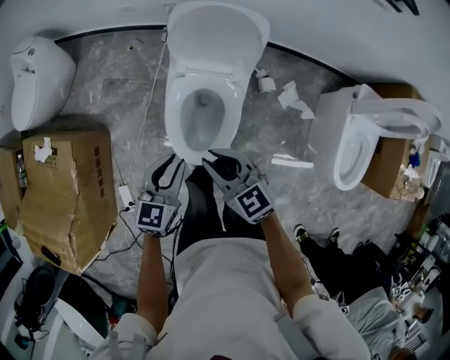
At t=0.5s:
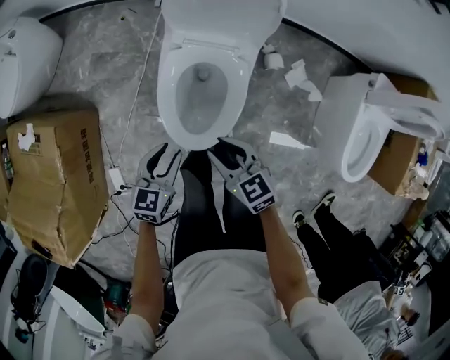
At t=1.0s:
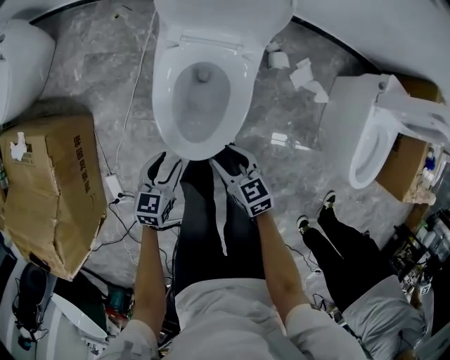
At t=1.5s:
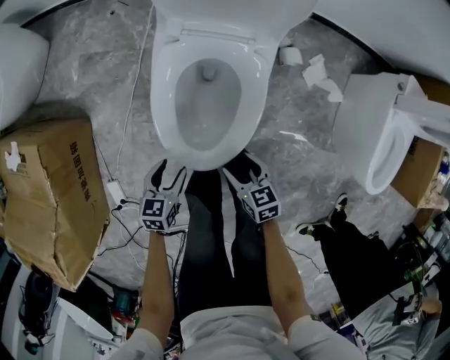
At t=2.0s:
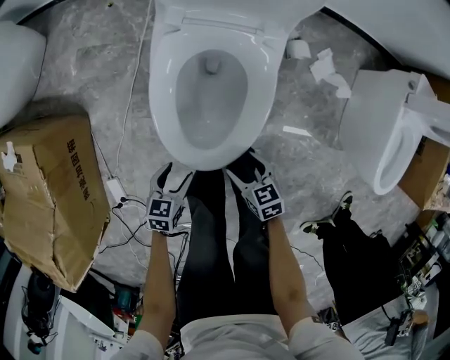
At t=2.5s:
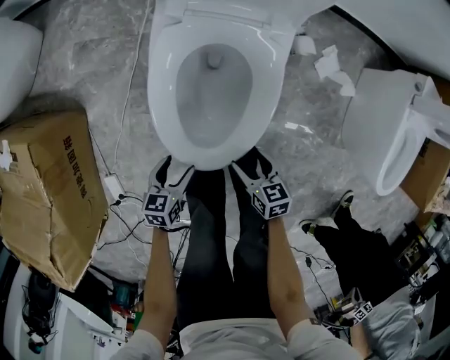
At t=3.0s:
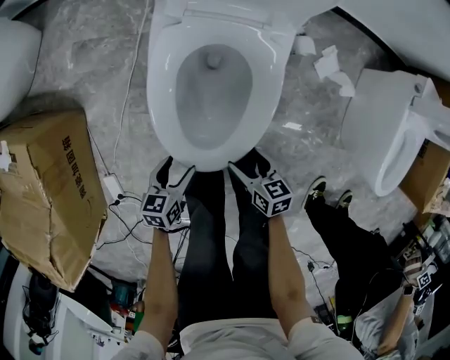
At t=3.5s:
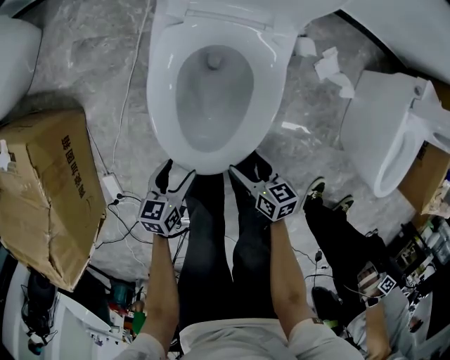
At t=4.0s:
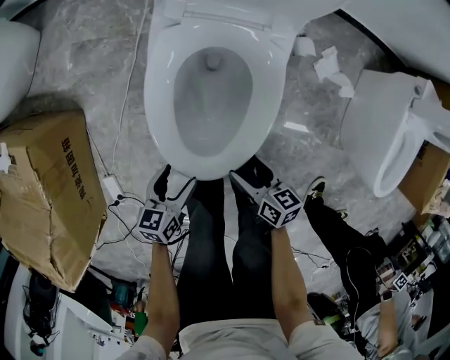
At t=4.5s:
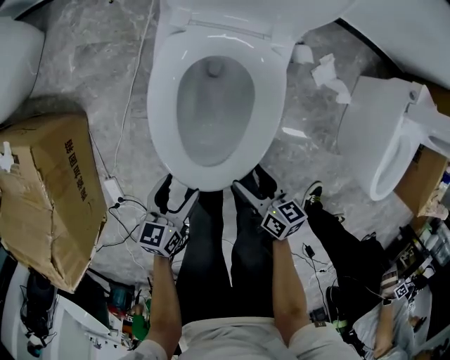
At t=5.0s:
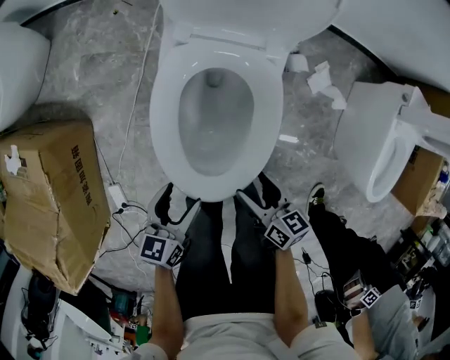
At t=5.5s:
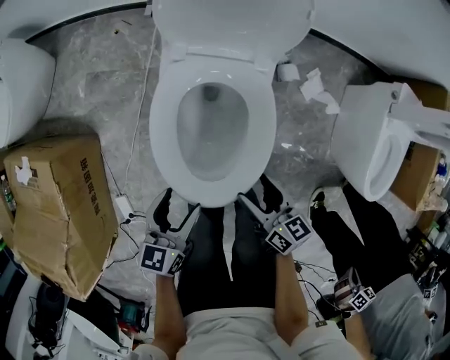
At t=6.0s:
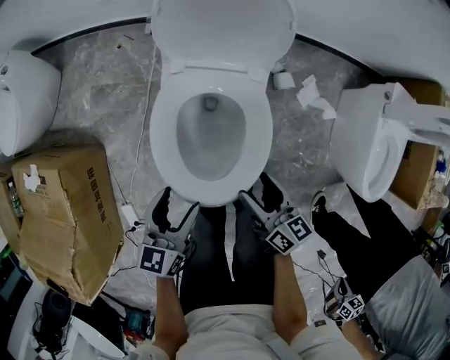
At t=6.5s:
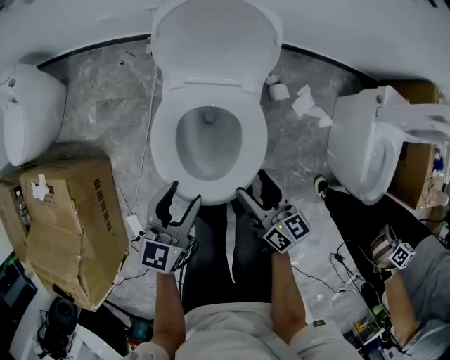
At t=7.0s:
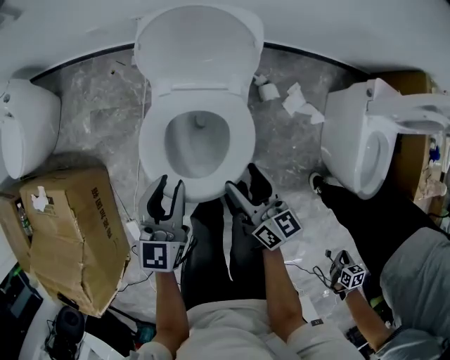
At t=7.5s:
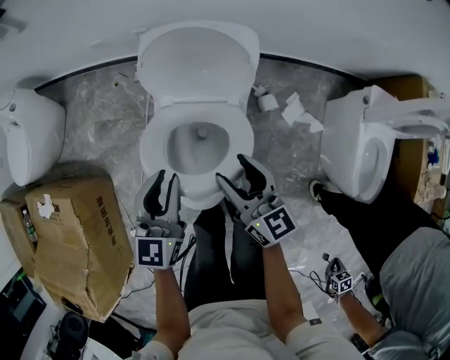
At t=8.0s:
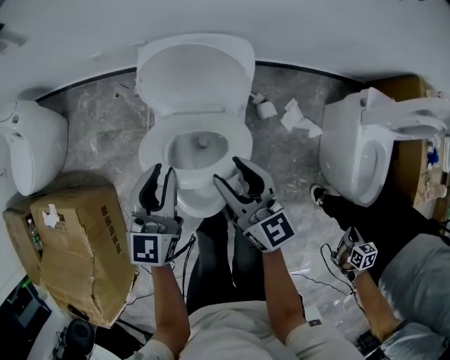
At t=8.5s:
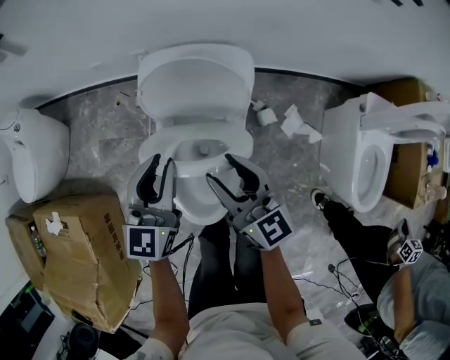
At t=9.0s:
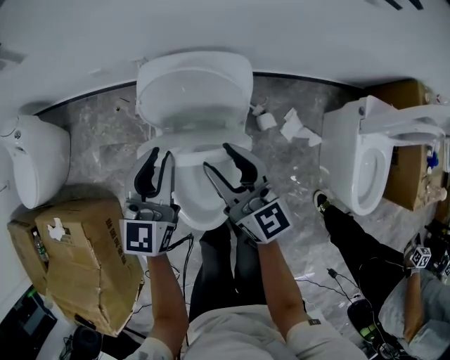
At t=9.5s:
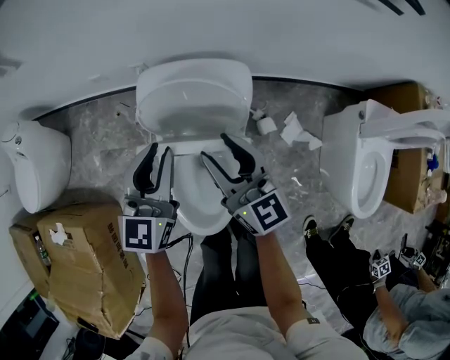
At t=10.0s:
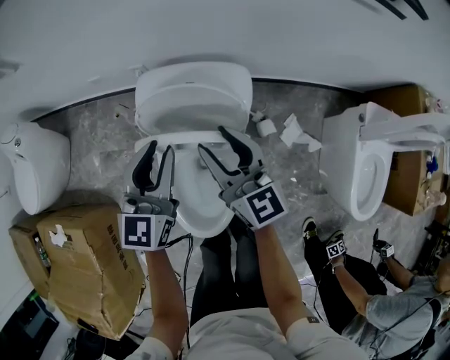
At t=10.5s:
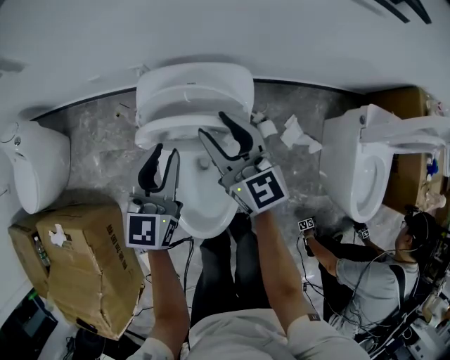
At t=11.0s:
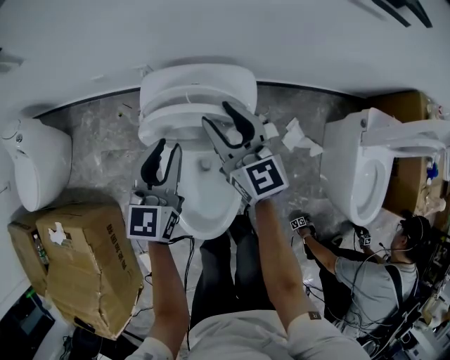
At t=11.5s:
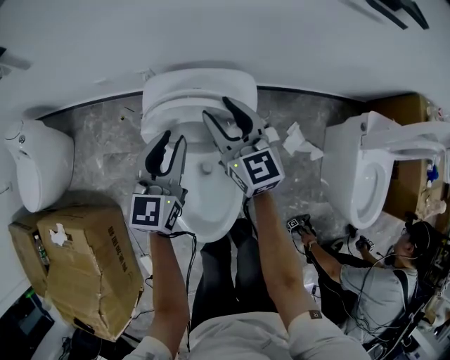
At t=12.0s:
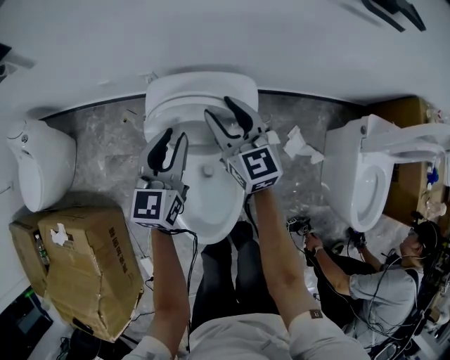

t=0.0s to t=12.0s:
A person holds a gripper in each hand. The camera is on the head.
t=0.0s to t=2.0s: The grippers both shift downward by some 40 cm. The left gripper swivels some 30 degrees, and opens its fingers, while the right gripper changes its angle by approximately 30 degrees, and opens.
t=2.0s to t=4.0s: The right gripper changes its angle by about 30 degrees.
t=4.0s to t=6.0s: Both grippers move upward, approximately 25 cm. The right gripper rotates roughly 20 degrees. The left gripper turns by some 20 degrees.
t=6.0s to t=8.0s: The left gripper heads forward and upward, covering some 25 cm, swivels approximately 20 degrees, and closes its fingers; the right gripper travels upward and forward by approximately 20 cm, swivels approximately 30 degrees, and closes up.
t=8.0s to t=10.0s: The grippers both shift forward by about 15 cm.
t=10.0s to t=12.0s: The right gripper moves forward, about 10 cm.

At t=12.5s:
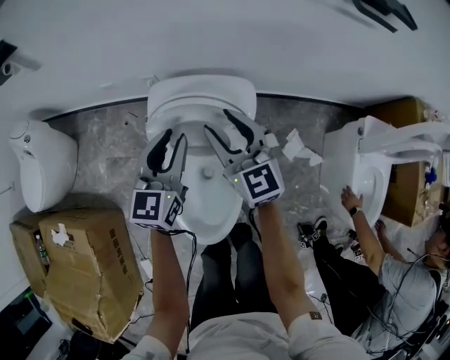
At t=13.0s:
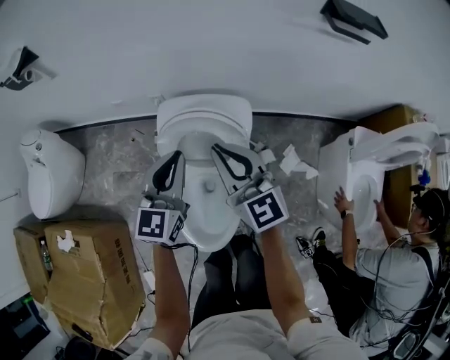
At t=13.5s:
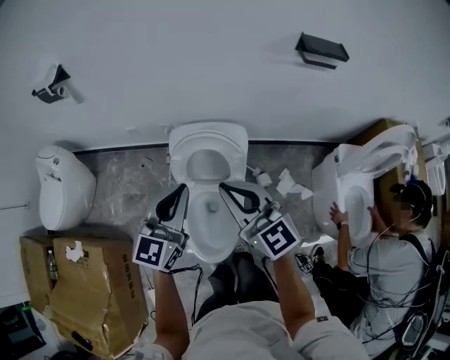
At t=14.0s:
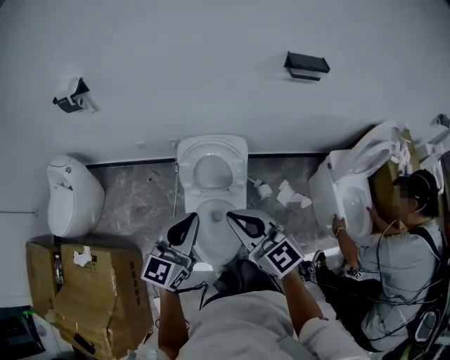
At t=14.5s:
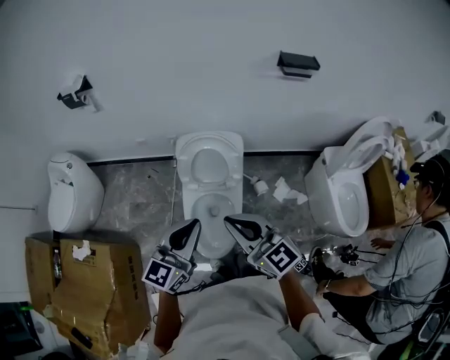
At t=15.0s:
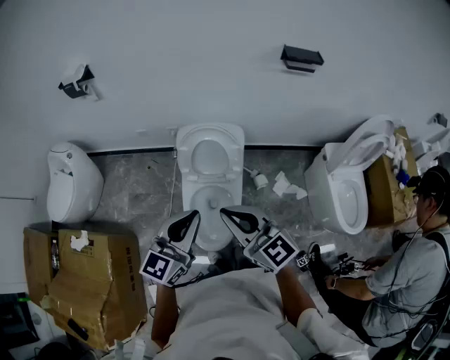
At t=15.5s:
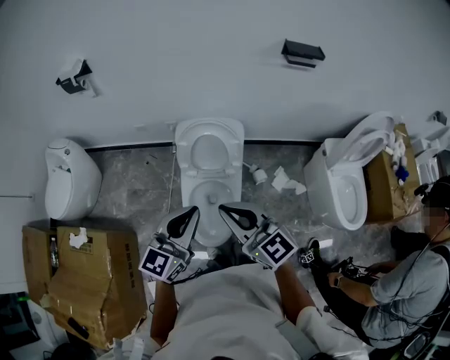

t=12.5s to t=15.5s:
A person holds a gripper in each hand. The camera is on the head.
t=12.5s to t=14.0s: Both grippers move backward and upward, roughly 35 cm. The right gripper closes.
t=14.0s to t=15.5s: The two grippers go about 5 cm backward.

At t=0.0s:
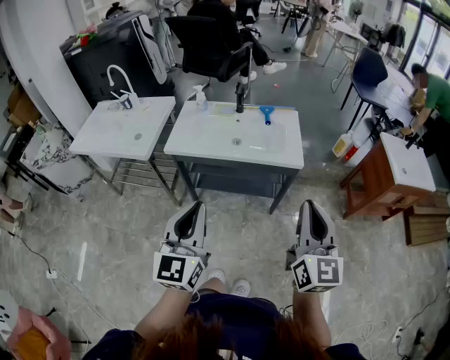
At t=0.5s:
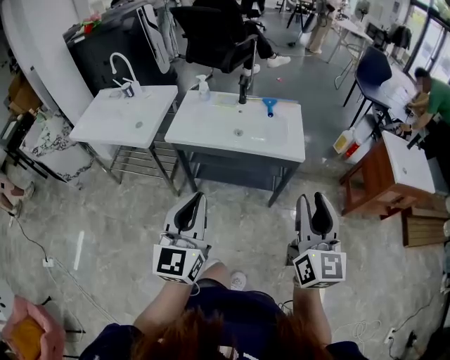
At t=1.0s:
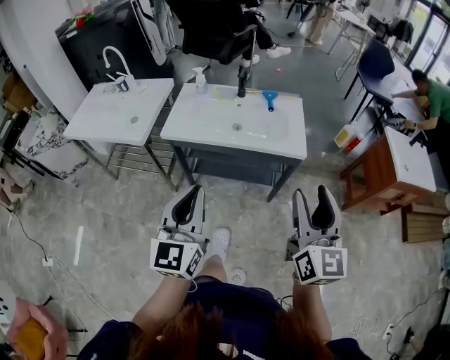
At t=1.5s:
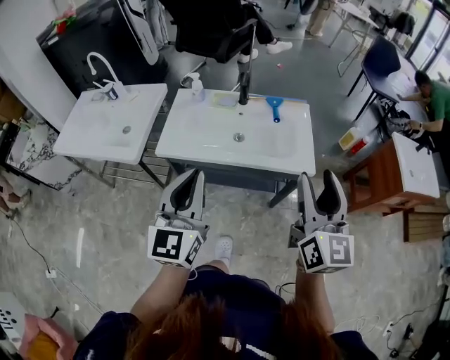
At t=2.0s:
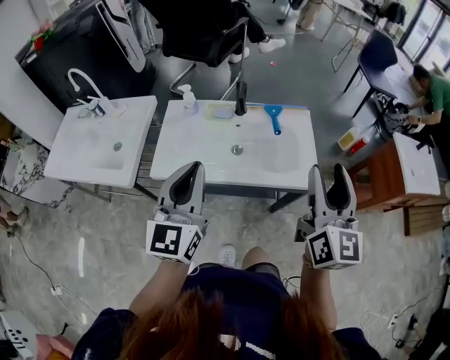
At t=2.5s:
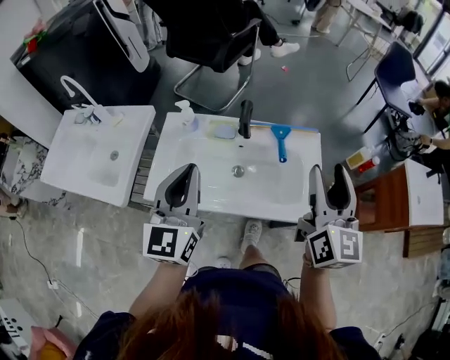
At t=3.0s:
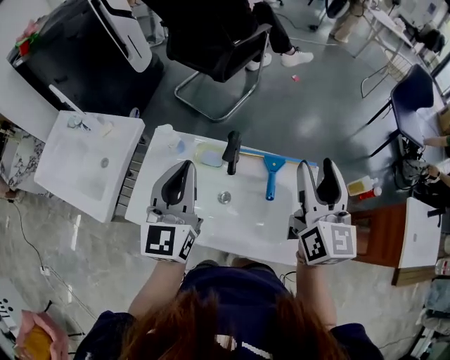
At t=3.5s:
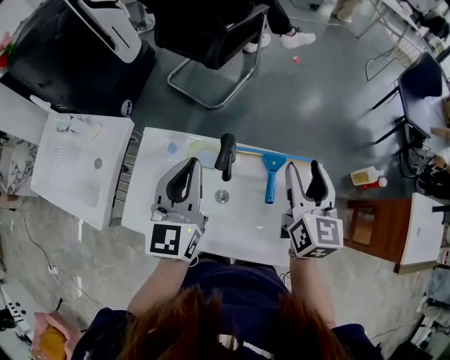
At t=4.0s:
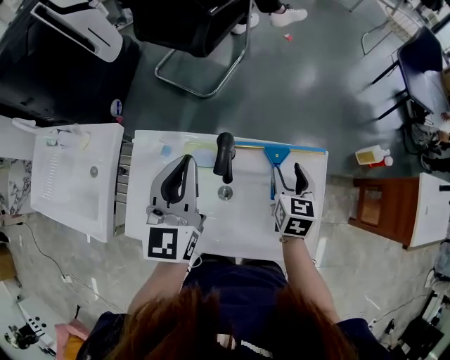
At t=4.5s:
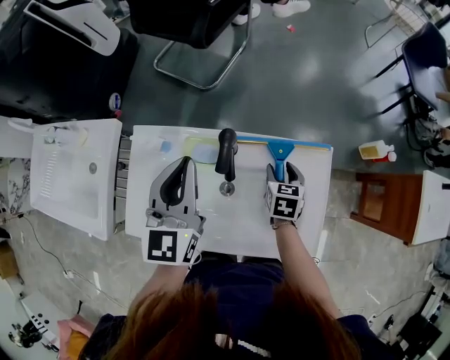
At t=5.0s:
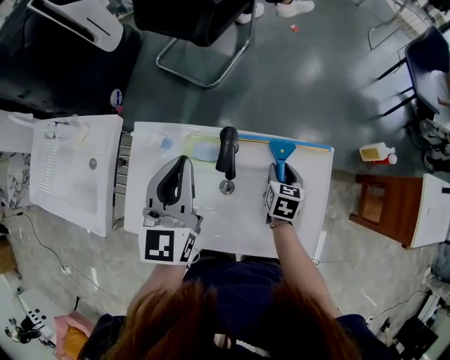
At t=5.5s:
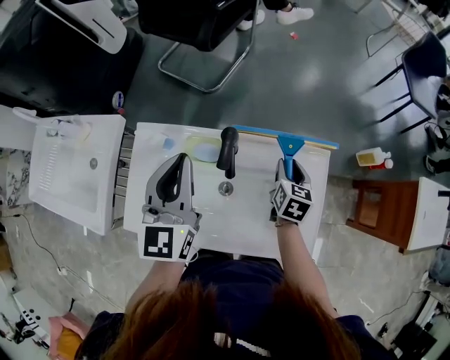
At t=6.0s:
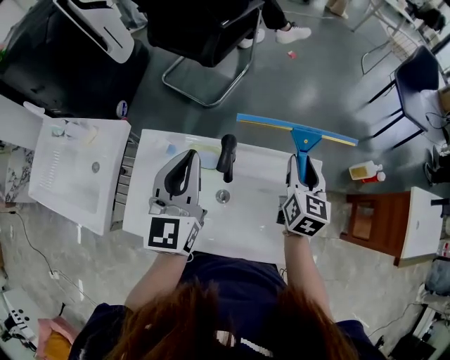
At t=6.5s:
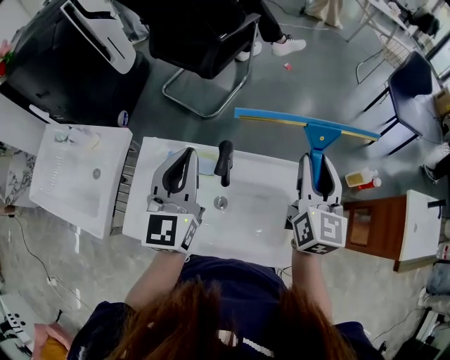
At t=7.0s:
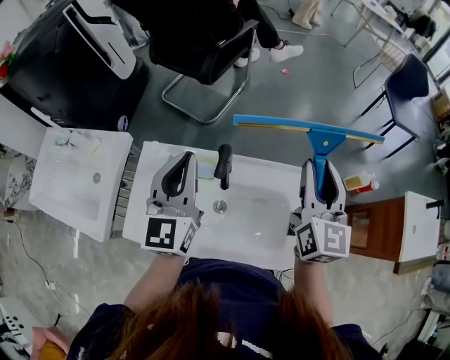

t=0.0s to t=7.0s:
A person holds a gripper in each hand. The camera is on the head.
t=0.0s to t=2.0s: The two grippers go about 35 cm forward. The right gripper opens its fingers.
t=2.0s to t=3.5s: The pair of grippers is taken forward, about 40 cm. The right gripper changes its angle by some 20 degrees.
t=3.5s to t=5.0s: The right gripper heads downward, covering roughly 25 cm, and tilts its fingers about 30 degrees downward, while the left gripper goes about 5 cm downward.
t=5.0s to t=7.0s: The right gripper moves upward, some 35 cm, and angles its fingers upward, by approximately 50 degrees. The left gripper is displaced upward by some 10 cm.

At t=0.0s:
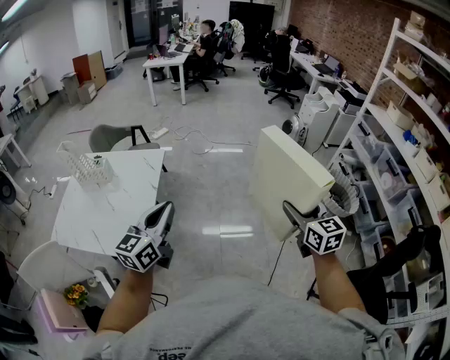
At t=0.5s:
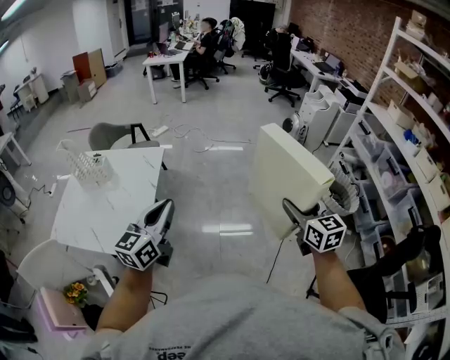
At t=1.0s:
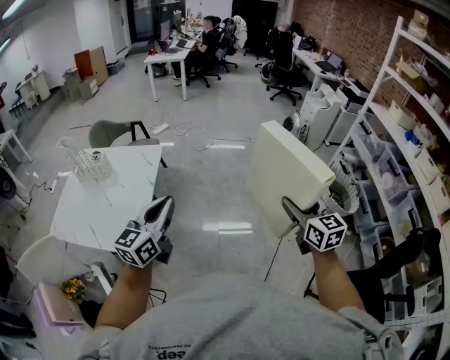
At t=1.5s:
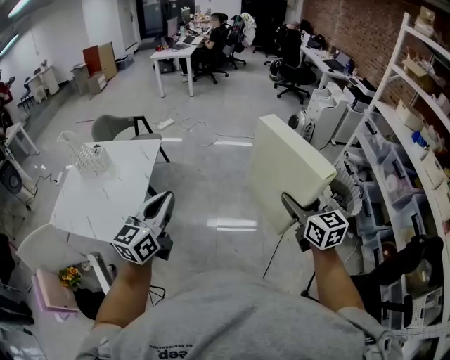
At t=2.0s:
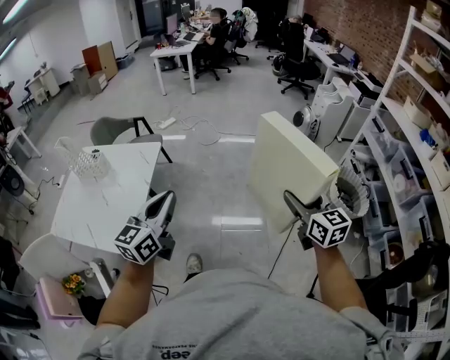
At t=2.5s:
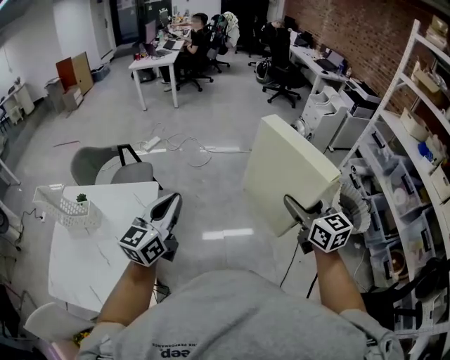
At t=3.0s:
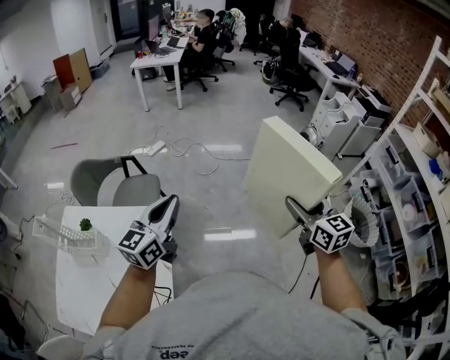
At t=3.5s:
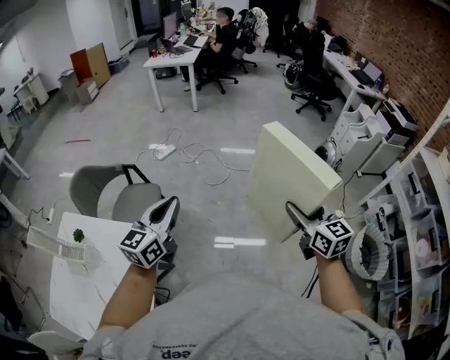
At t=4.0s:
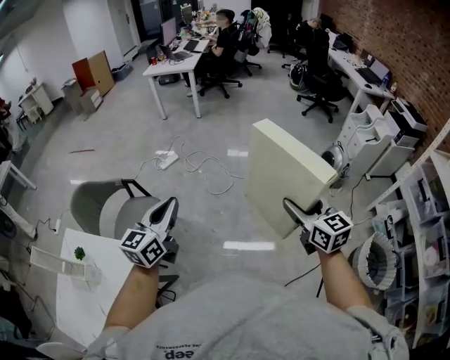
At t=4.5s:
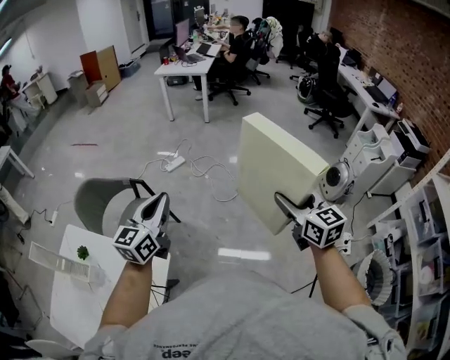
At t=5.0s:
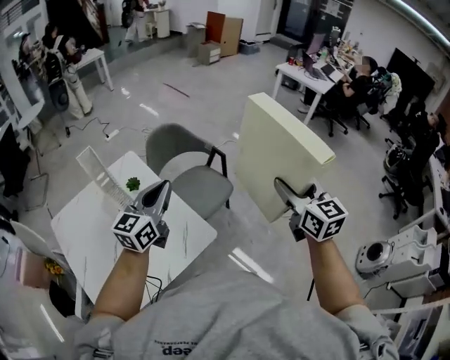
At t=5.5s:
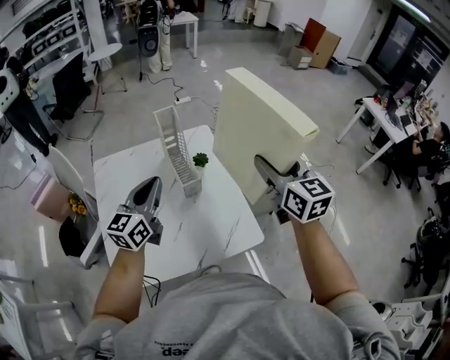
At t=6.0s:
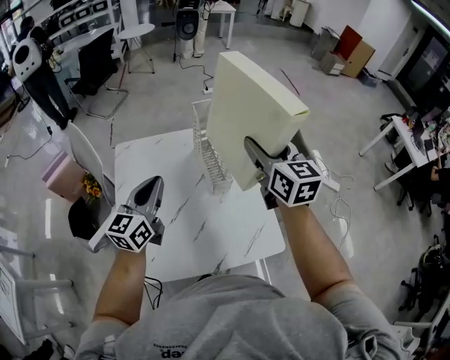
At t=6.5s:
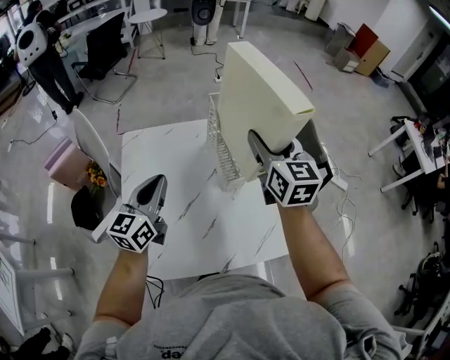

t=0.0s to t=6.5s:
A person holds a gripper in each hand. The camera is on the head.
t=0.0s to t=2.0s: The left gripper shifts roughly 10 cm to the right and forward. The right gripper heads forward and to the right, covering roughly 10 cm.
t=2.0s to t=4.5s: Both grippers are carried forward, some 70 cm.
t=4.5s to t=6.5s: The two grippers travel together, approximately 80 cm. The left gripper changes its angle by roughly 70 degrees. The right gripper turns by some 60 degrees.
